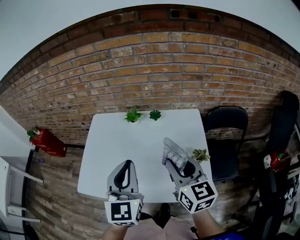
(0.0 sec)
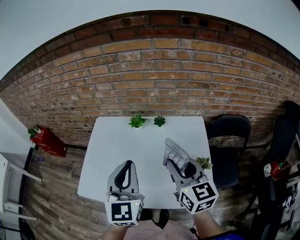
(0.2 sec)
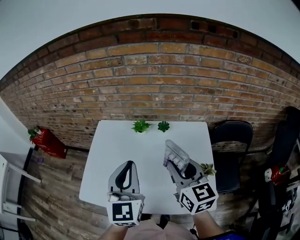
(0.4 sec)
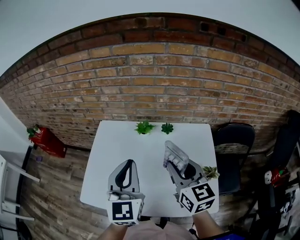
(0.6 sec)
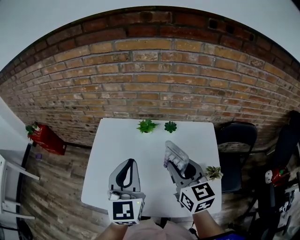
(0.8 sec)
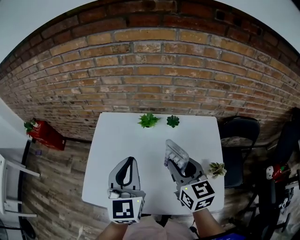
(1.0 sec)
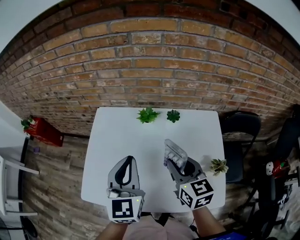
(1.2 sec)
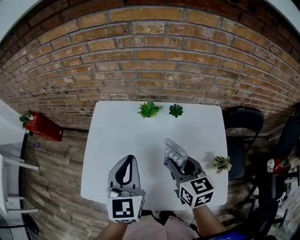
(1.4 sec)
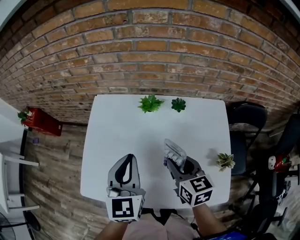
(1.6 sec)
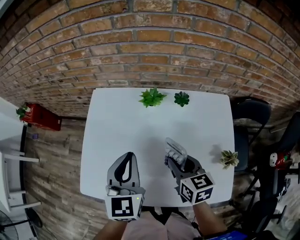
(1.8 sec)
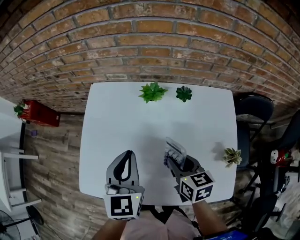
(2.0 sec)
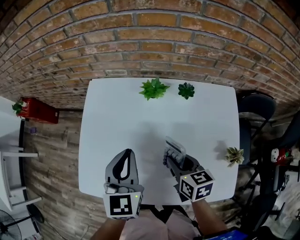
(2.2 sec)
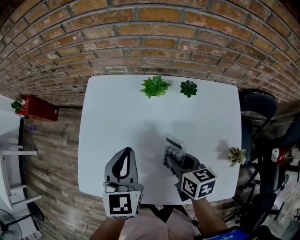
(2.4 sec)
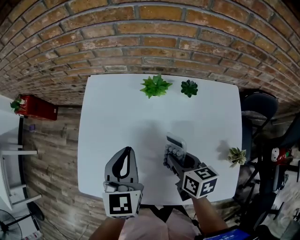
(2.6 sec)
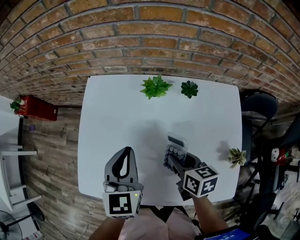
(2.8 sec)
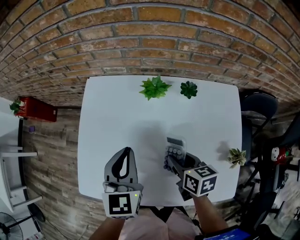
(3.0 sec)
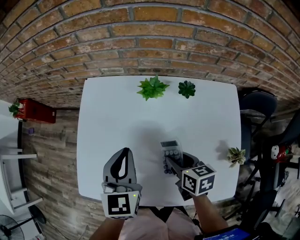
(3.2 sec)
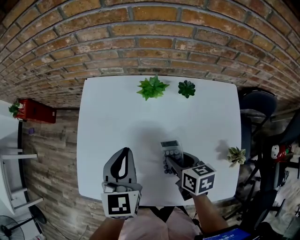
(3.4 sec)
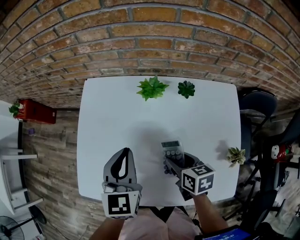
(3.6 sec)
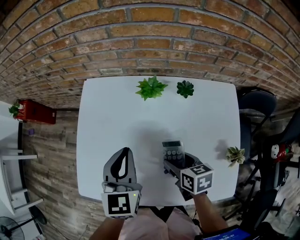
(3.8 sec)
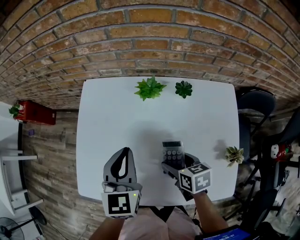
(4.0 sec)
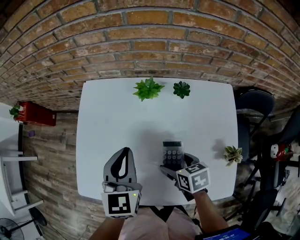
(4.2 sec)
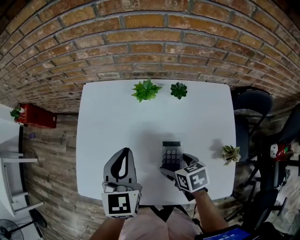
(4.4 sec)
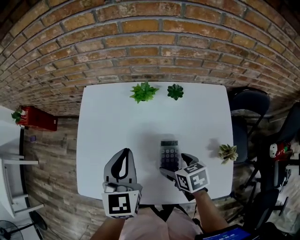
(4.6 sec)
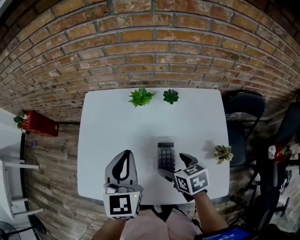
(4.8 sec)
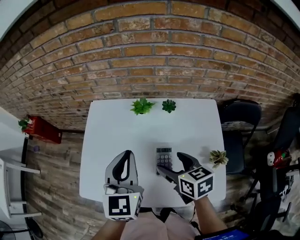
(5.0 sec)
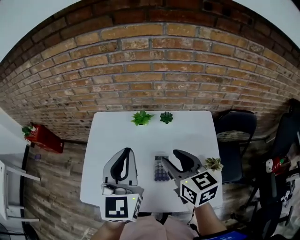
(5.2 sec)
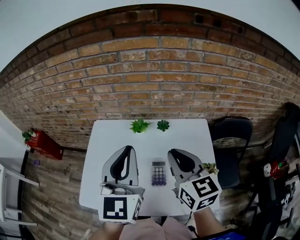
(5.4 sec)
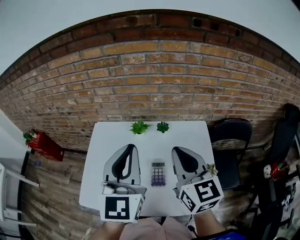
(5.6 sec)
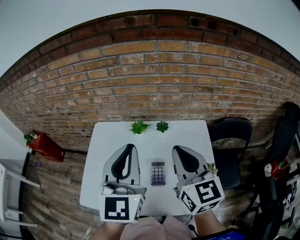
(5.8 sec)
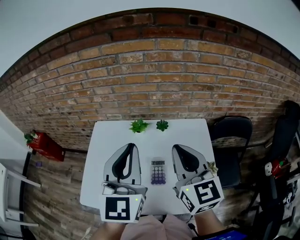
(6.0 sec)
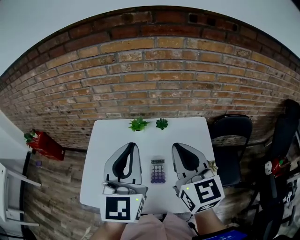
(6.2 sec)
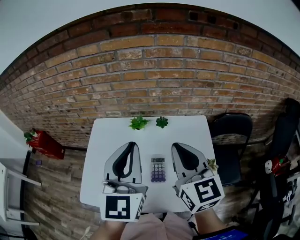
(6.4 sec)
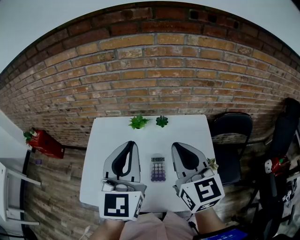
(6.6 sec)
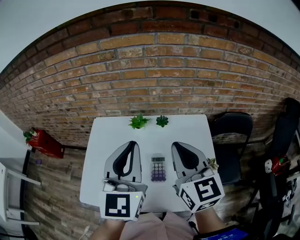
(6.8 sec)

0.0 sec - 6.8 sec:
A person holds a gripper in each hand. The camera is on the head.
0.0 sec - 1.4 sec: The right gripper heads forward, downward and to the left, covering about 15 cm; the left gripper is displaced forward, to the left and downward by approximately 15 cm.
1.4 sec - 2.8 sec: The right gripper is displaced downward by some 15 cm, and turns by approximately 30 degrees. Meanwhile the left gripper is displaced downward by some 10 cm.
2.8 sec - 4.0 sec: The right gripper opens.
4.0 sec - 5.4 sec: Both grippers move upward, roughly 25 cm. The left gripper rotates some 30 degrees, while the right gripper points its fingers roughly 40 degrees further upward, and closes its fingers.
5.4 sec - 6.8 sec: There are only small adjustments of the grippers.

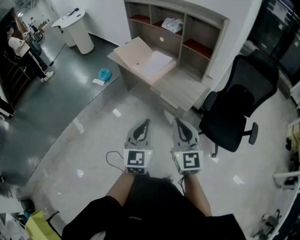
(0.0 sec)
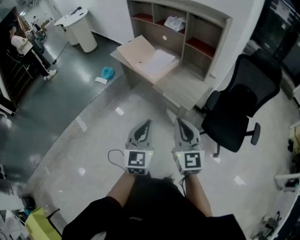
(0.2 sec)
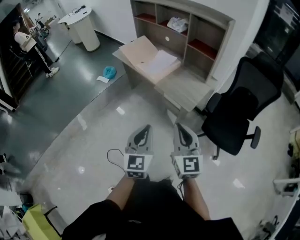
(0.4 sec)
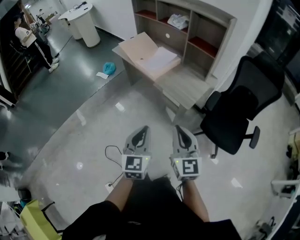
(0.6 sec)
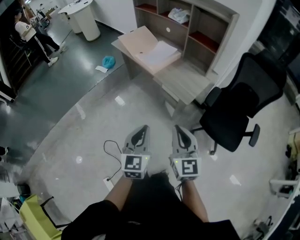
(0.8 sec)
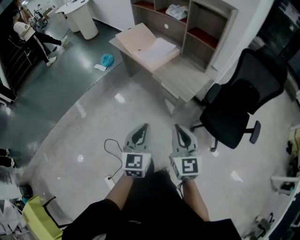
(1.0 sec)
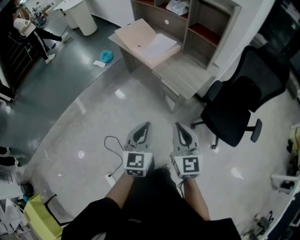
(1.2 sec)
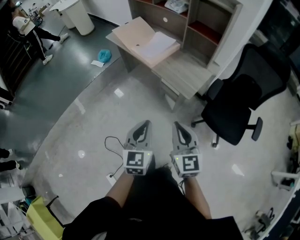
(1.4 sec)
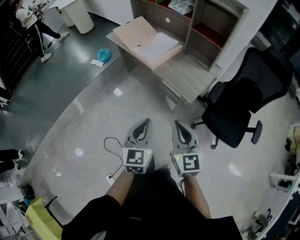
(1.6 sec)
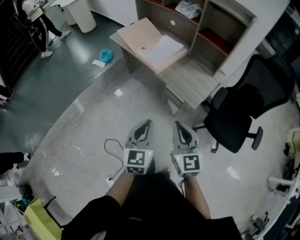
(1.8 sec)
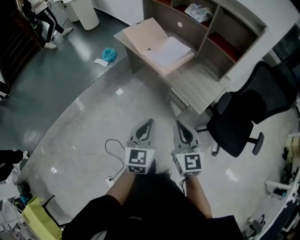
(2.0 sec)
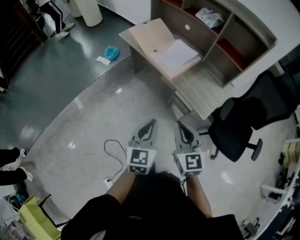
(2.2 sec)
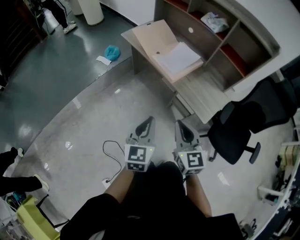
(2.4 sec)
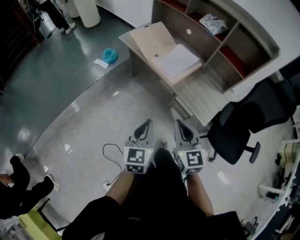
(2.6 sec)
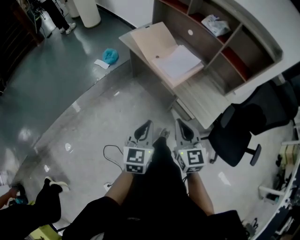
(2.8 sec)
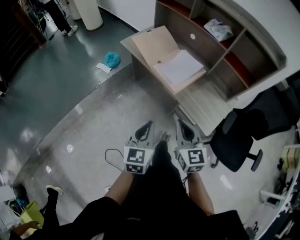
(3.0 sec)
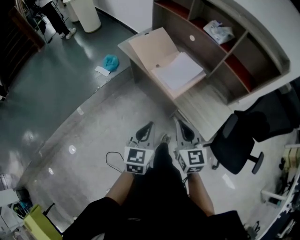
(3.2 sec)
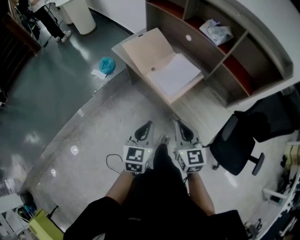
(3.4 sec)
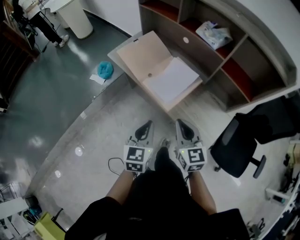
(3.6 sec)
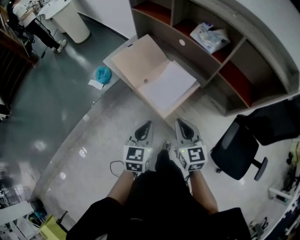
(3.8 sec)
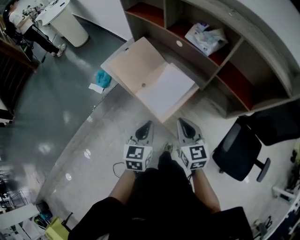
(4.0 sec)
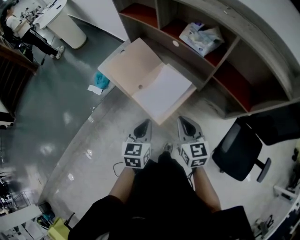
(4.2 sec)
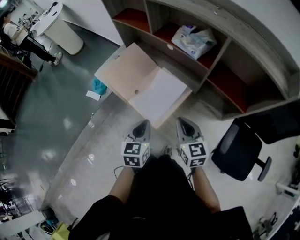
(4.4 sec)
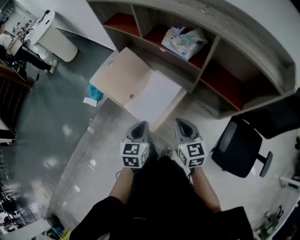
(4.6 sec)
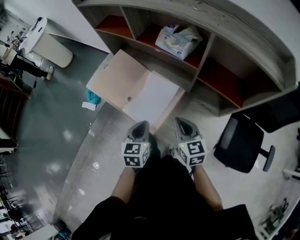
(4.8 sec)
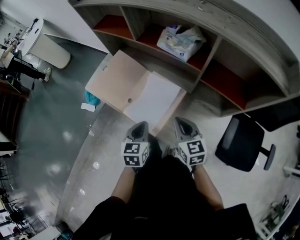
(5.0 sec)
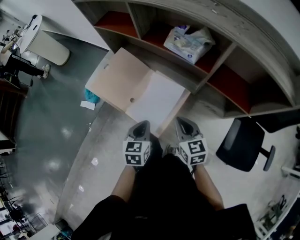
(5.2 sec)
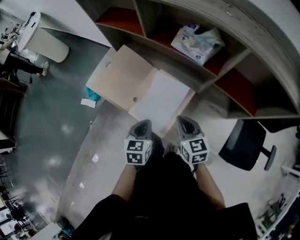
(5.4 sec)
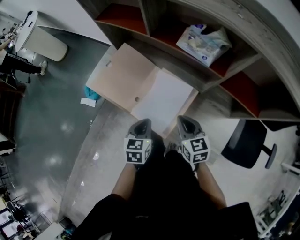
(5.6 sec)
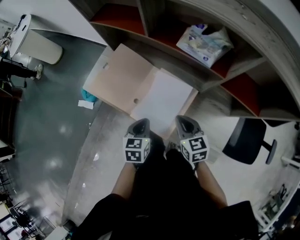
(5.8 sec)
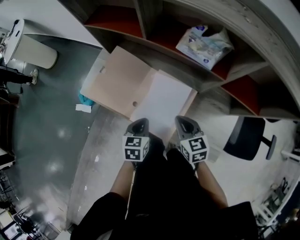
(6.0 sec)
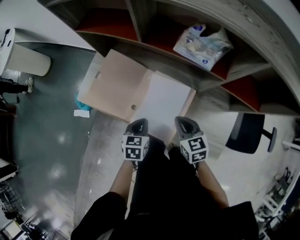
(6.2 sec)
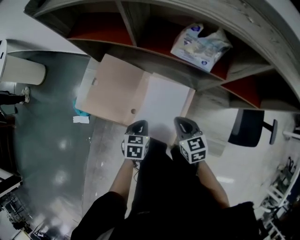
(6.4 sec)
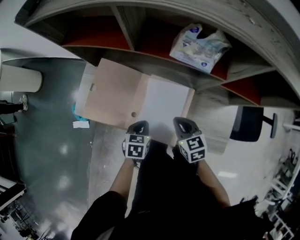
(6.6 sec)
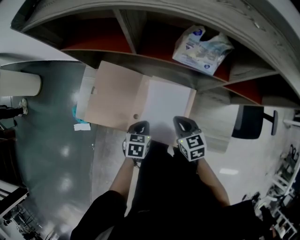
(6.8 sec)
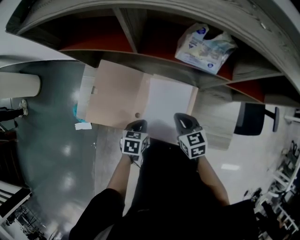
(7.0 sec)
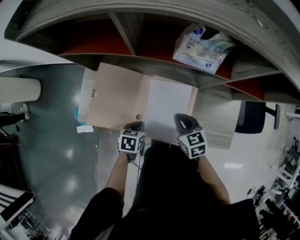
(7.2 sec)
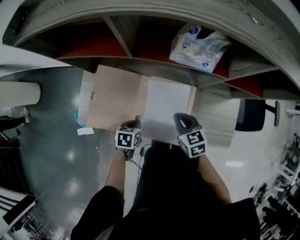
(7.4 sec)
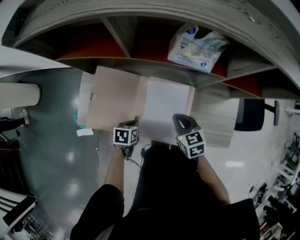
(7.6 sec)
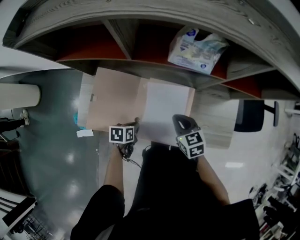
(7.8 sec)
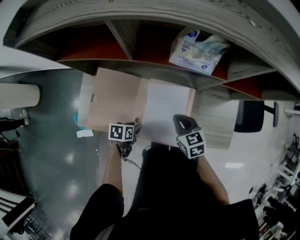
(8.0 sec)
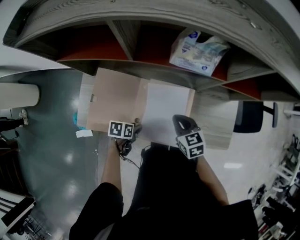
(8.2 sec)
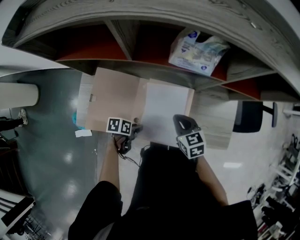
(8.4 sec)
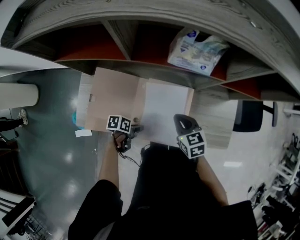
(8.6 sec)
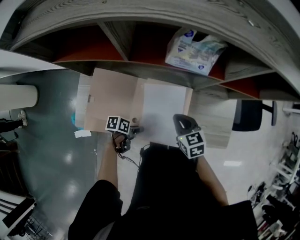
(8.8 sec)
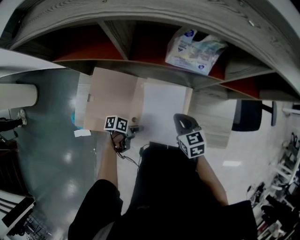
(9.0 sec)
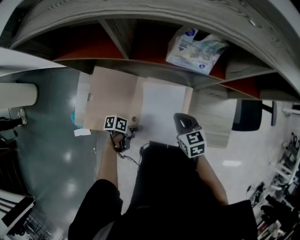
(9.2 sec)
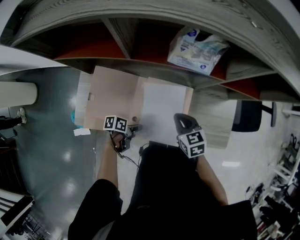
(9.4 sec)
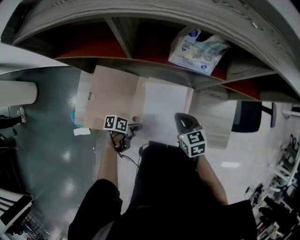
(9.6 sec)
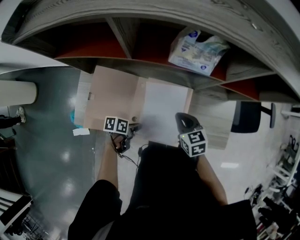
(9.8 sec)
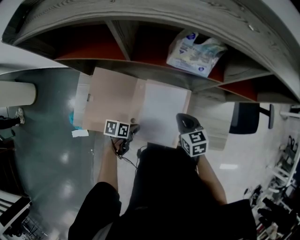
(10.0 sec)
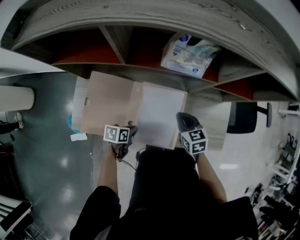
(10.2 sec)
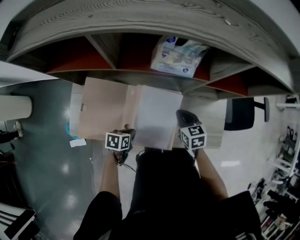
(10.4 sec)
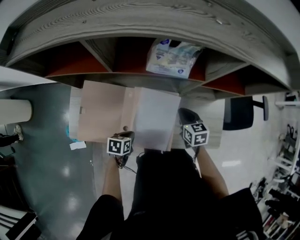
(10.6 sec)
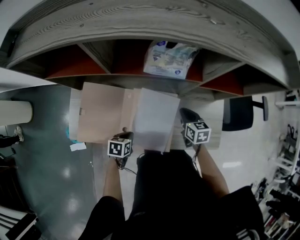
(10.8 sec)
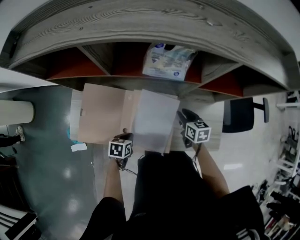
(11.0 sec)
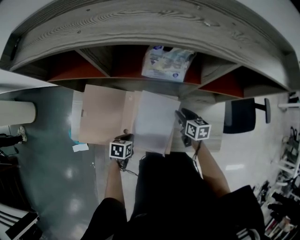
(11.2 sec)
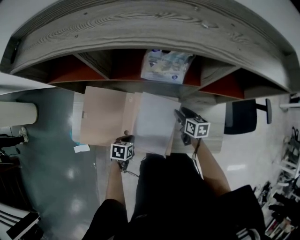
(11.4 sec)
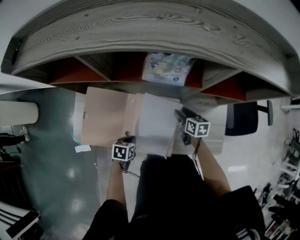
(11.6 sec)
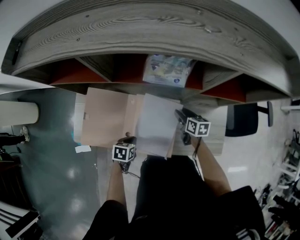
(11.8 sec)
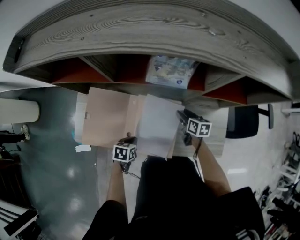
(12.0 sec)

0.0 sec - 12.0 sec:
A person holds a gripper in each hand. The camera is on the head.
0.0 sec - 1.6 sec: The two grippers go about 5 cm downward.
1.6 sec - 3.0 sec: Both grippers travel together forward and to the left, approximately 25 cm.
3.0 sec - 4.4 sec: Both grippers move forward and to the right, approximately 30 cm.
4.4 sec - 6.0 sec: The two grippers go some 15 cm forward, downward and to the left.
6.0 sec - 7.6 sec: The left gripper goes roughly 10 cm downward, and changes its angle by about 30 degrees; the right gripper shifts by approximately 5 cm.
7.6 sec - 9.0 sec: The left gripper moves some 5 cm, rotates some 40 degrees, and opens.
9.0 sec - 10.4 sec: The right gripper is displaced forward by roughly 5 cm; the left gripper turns by some 30 degrees, and closes.
10.4 sec - 12.0 sec: The right gripper travels downward and forward by roughly 10 cm, swivels roughly 30 degrees, and opens.

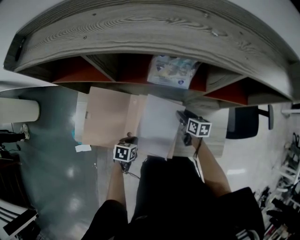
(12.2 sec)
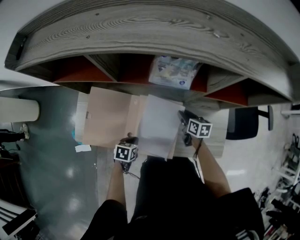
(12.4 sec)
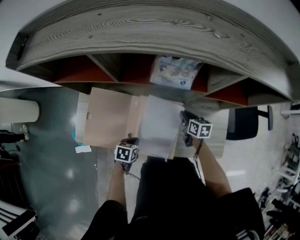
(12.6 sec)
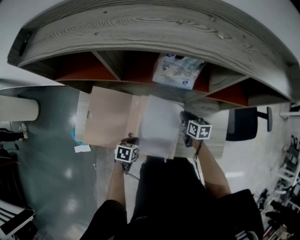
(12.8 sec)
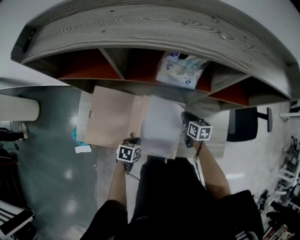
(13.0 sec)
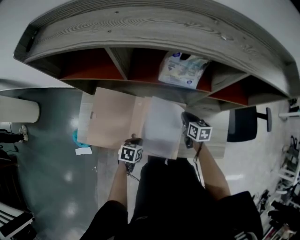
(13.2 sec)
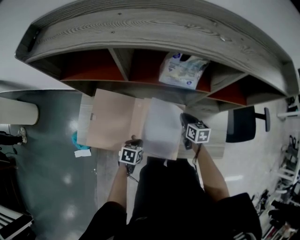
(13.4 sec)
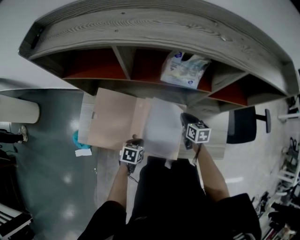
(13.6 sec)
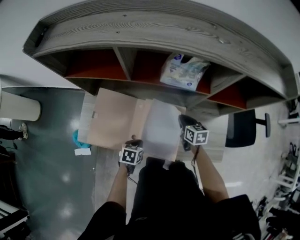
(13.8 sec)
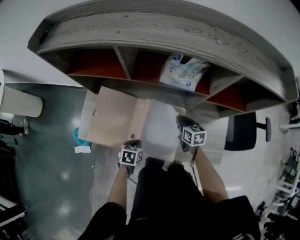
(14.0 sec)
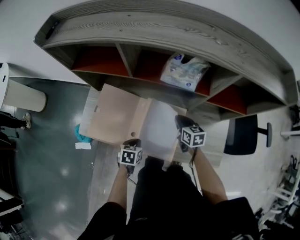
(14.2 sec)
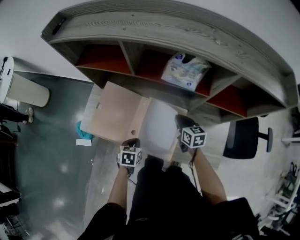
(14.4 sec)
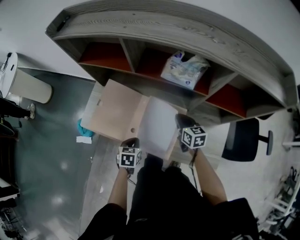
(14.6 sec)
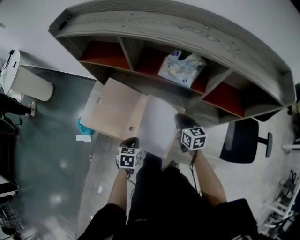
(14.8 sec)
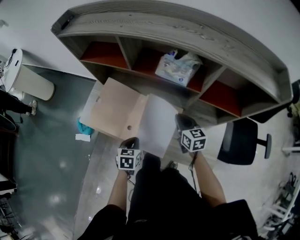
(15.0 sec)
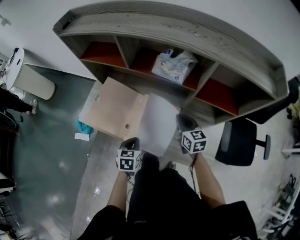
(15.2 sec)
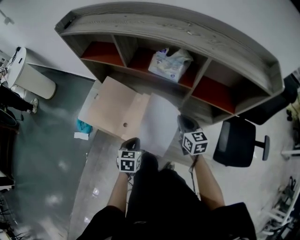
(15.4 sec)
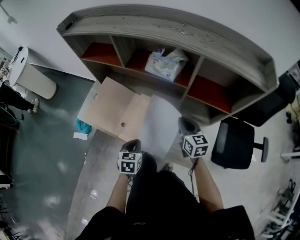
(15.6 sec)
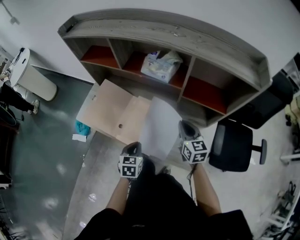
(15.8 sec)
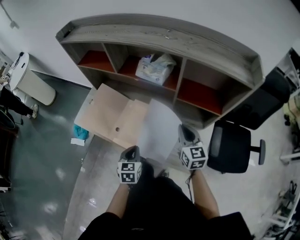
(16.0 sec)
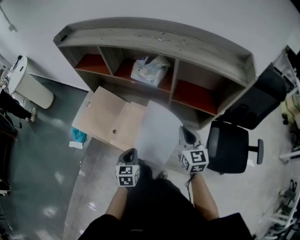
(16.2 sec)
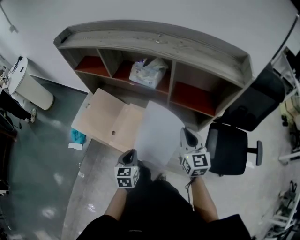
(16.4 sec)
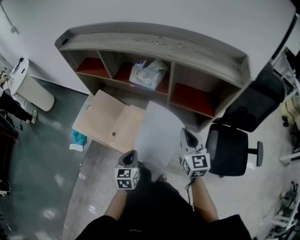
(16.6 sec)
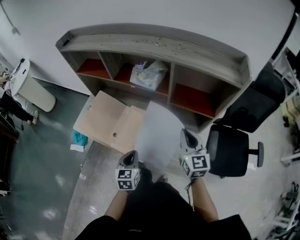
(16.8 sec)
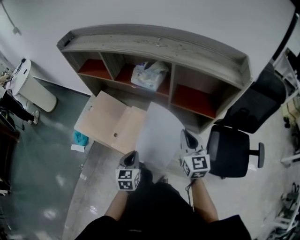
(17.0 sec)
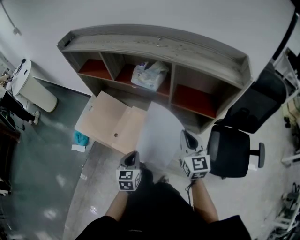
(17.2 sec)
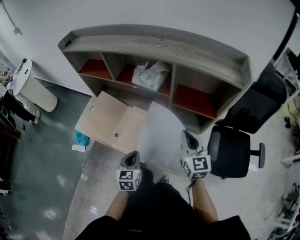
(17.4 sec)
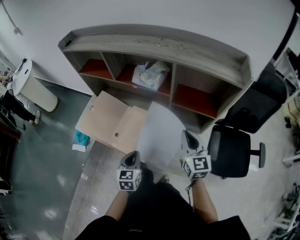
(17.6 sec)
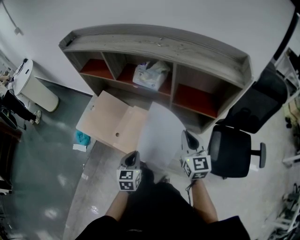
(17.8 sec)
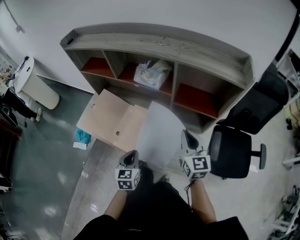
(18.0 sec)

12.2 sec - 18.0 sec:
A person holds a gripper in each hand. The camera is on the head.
12.2 sec - 13.6 sec: The right gripper shifts by some 5 cm, and closes up.
13.6 sec - 15.0 sec: The grippers both shift upward by about 10 cm. The right gripper changes its angle by approximately 20 degrees. The left gripper rotates about 30 degrees.
15.0 sec - 16.6 sec: The right gripper travels upward, to the right and backward by some 20 cm, and rotates about 20 degrees. The left gripper goes some 15 cm to the right, upward and backward, and turns by about 20 degrees.
16.6 sec - 18.0 sec: The two grippers keep their place.
